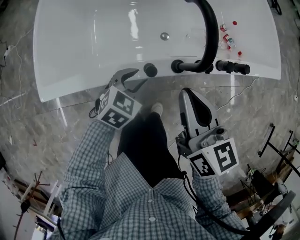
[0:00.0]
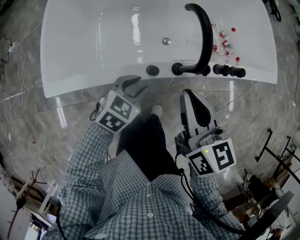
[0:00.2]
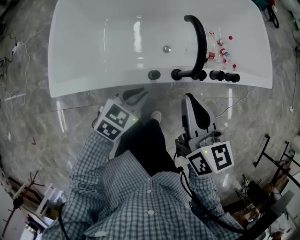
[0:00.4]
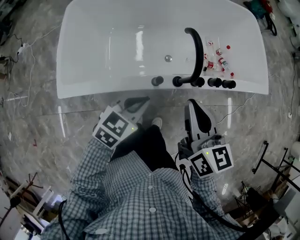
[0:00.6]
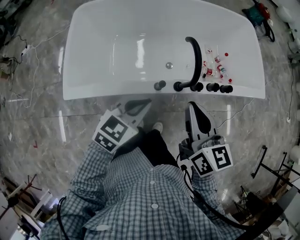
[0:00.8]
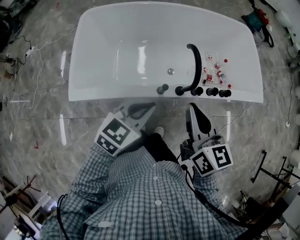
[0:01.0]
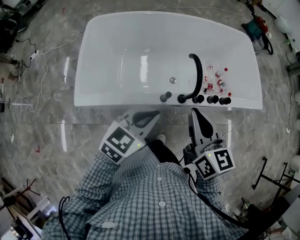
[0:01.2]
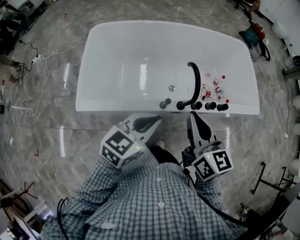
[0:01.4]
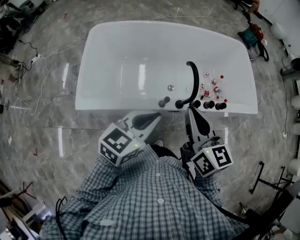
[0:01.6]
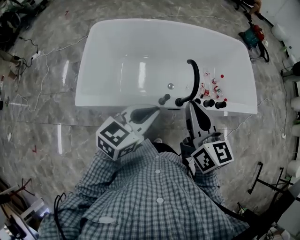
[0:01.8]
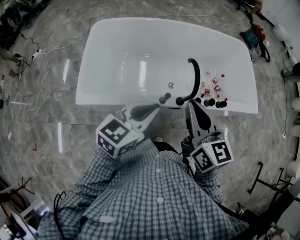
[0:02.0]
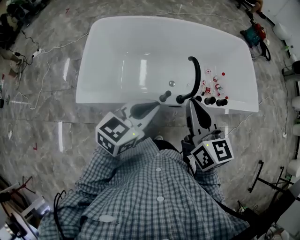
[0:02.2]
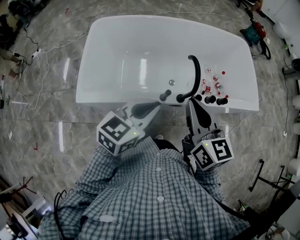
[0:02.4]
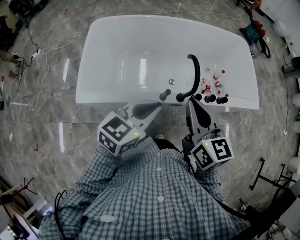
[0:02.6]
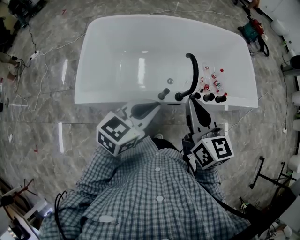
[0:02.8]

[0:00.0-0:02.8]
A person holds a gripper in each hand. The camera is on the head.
0:00.0 to 0:01.4: The right gripper travels upward by about 20 cm. The left gripper moves upward, approximately 35 cm, rotates about 30 degrees, and closes.
0:01.4 to 0:02.8: The grippers stay close to where they were, moving slightly.

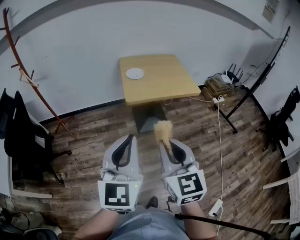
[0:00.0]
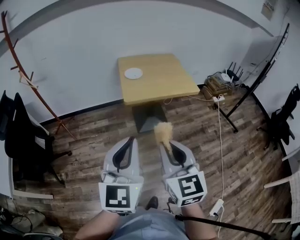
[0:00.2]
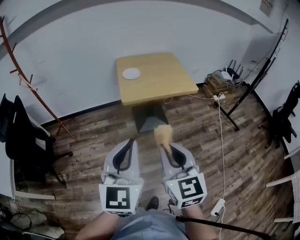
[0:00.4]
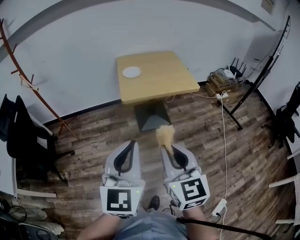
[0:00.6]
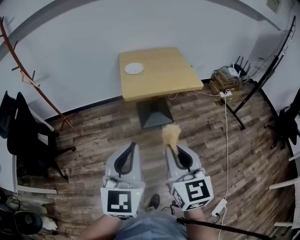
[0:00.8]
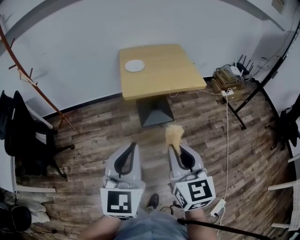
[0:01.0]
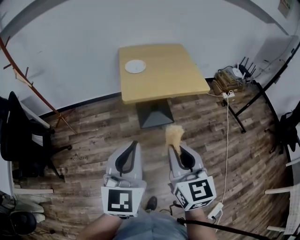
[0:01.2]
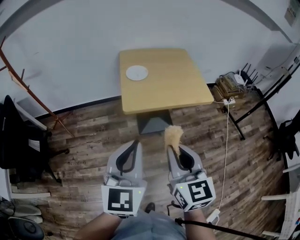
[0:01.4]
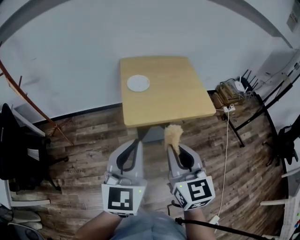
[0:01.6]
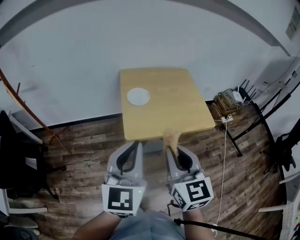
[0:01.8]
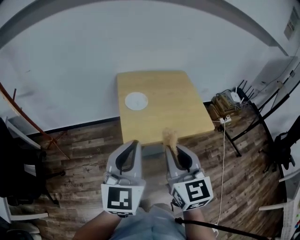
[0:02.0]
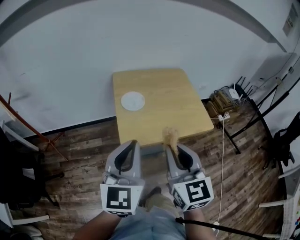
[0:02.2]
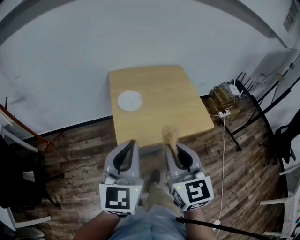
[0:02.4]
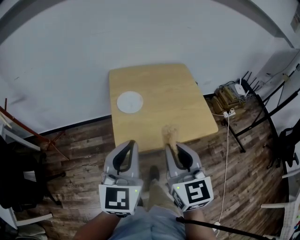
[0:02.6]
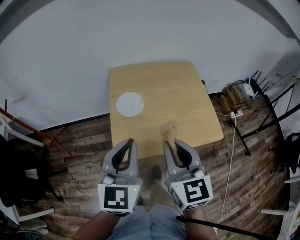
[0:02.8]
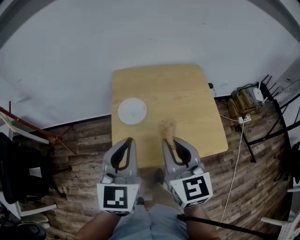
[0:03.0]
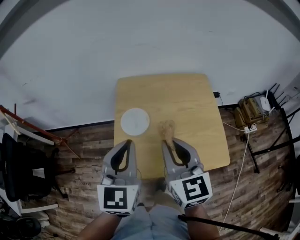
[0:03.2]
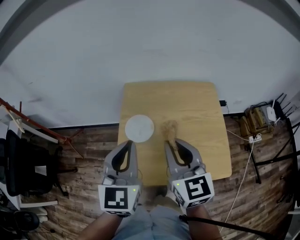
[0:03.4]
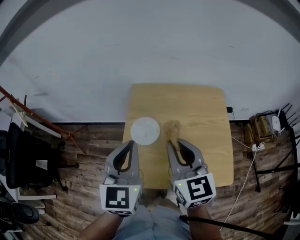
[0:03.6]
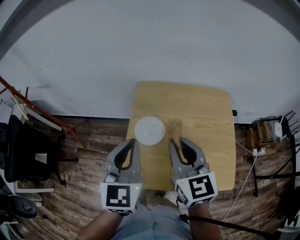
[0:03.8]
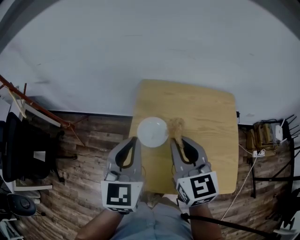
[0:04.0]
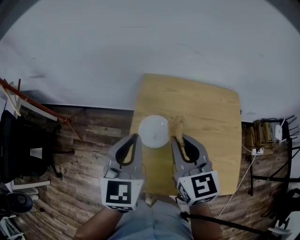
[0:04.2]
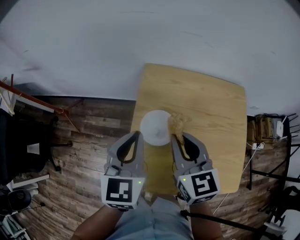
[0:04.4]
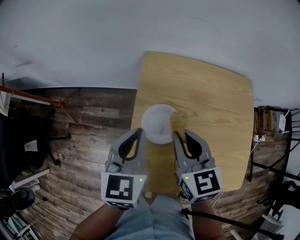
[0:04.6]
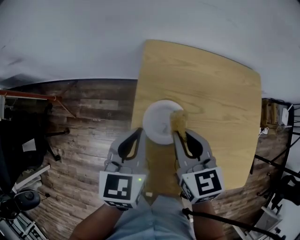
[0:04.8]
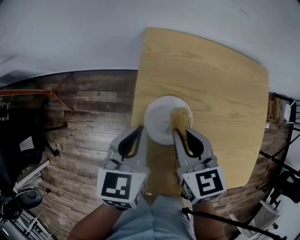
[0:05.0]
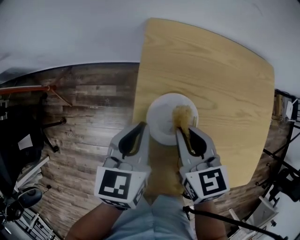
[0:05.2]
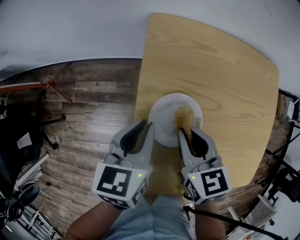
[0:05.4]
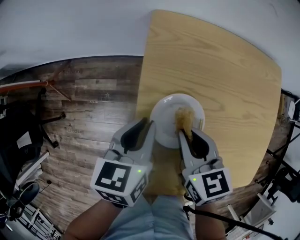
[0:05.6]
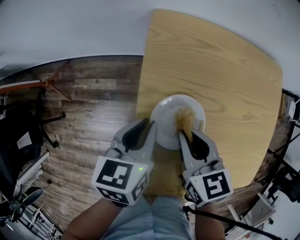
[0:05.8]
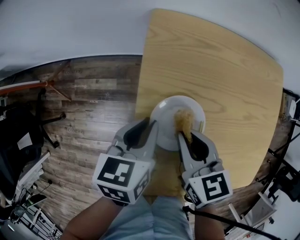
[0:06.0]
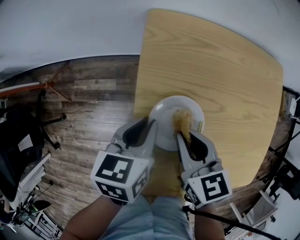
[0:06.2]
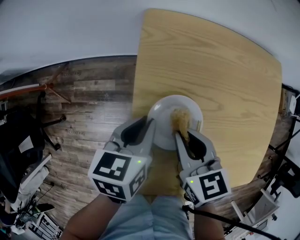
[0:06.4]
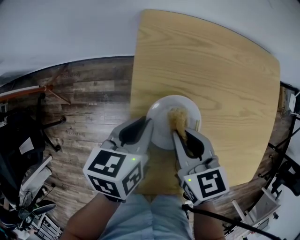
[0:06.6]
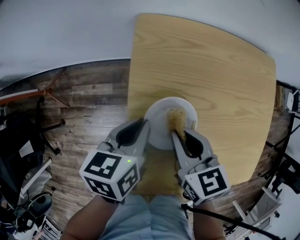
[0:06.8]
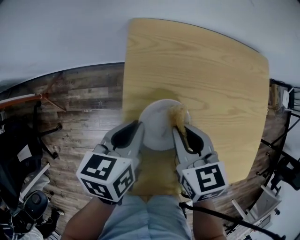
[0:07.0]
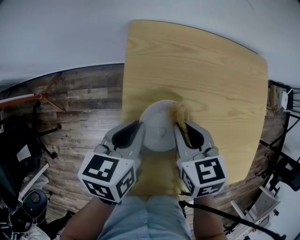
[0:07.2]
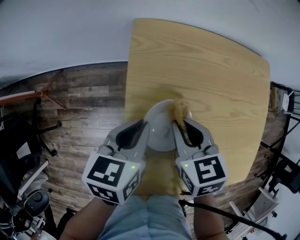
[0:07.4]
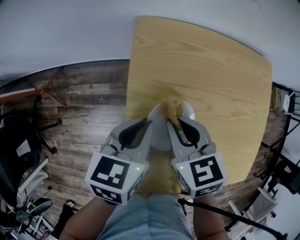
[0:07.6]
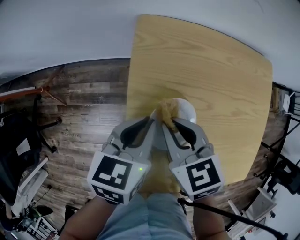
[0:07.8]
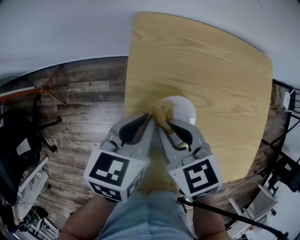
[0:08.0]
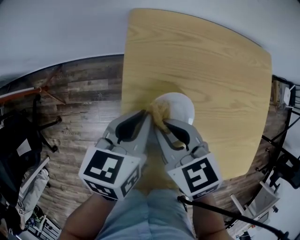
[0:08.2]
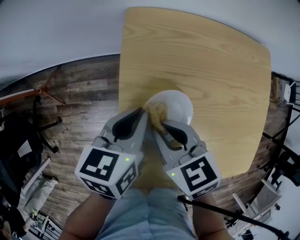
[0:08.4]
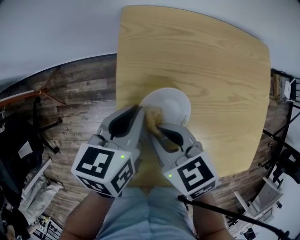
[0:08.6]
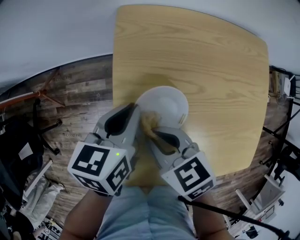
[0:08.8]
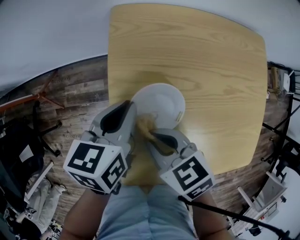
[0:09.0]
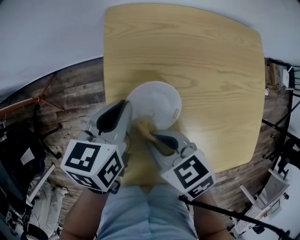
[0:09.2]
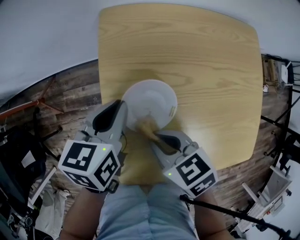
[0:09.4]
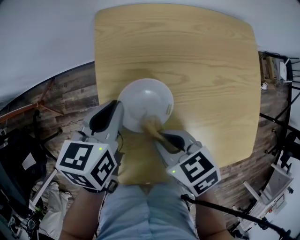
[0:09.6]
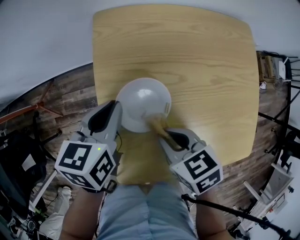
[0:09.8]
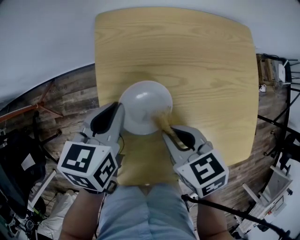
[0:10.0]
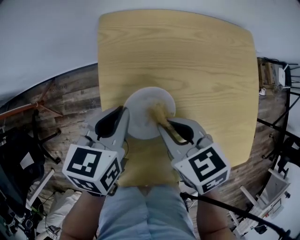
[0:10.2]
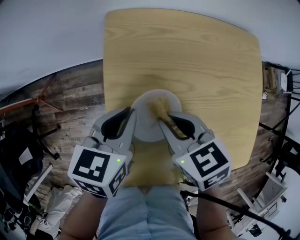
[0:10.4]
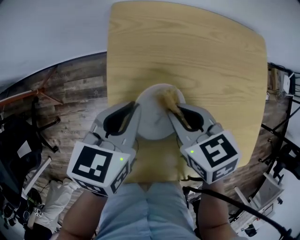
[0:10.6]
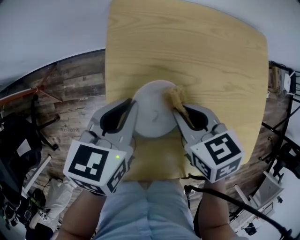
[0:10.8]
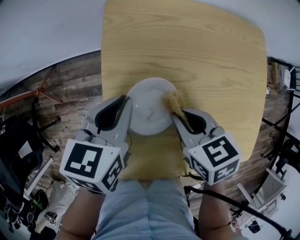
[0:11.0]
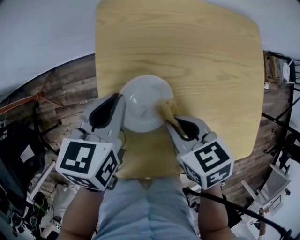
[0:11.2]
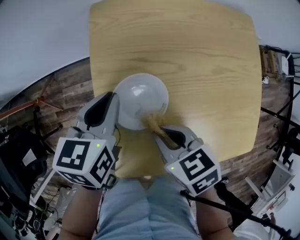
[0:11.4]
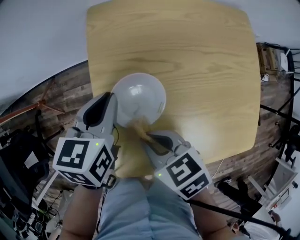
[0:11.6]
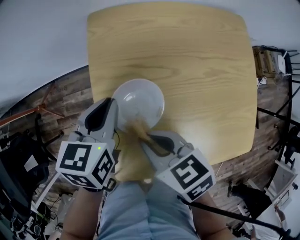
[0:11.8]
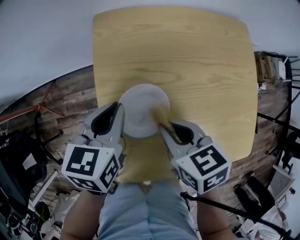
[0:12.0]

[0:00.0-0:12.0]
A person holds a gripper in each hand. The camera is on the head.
0:00.0 to 0:01.6: The grippers both shift forward by about 20 cm.
0:01.6 to 0:03.0: The two grippers go some 25 cm forward.
0:03.0 to 0:04.4: The grippers both shift forward by roughly 15 cm.
0:04.4 to 0:06.0: The two grippers go about 15 cm downward. The left gripper rotates roughly 40 degrees. The right gripper rotates some 20 degrees.
0:06.0 to 0:07.6: The grippers move only a little.
0:07.6 to 0:09.0: The right gripper goes some 10 cm backward.
0:09.0 to 0:10.4: The right gripper shifts some 5 cm to the right.

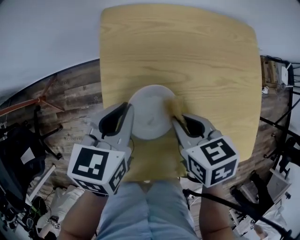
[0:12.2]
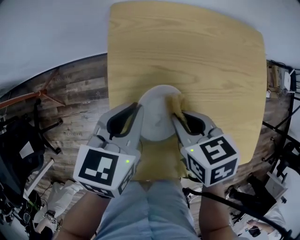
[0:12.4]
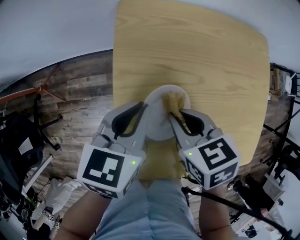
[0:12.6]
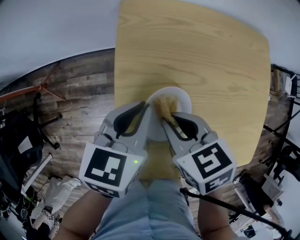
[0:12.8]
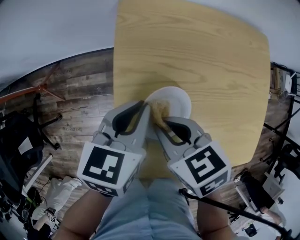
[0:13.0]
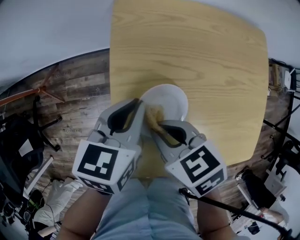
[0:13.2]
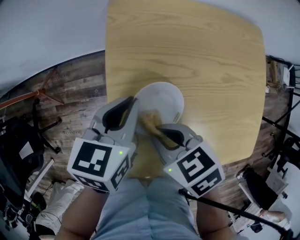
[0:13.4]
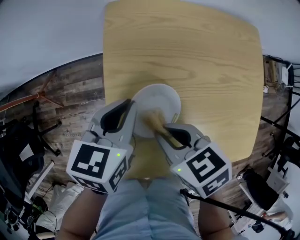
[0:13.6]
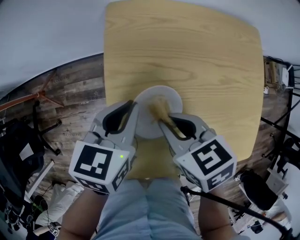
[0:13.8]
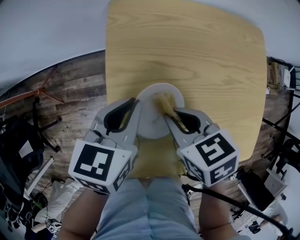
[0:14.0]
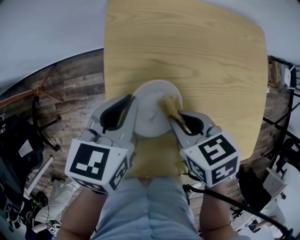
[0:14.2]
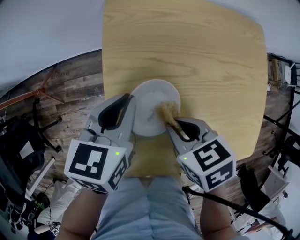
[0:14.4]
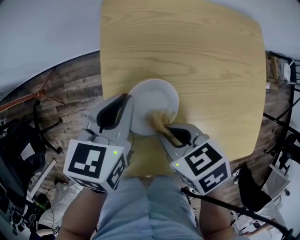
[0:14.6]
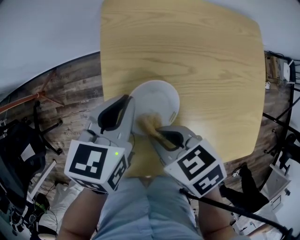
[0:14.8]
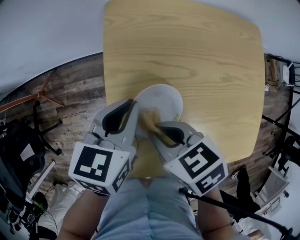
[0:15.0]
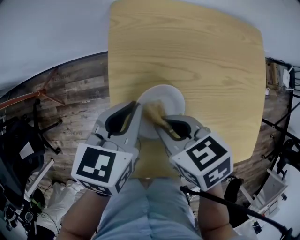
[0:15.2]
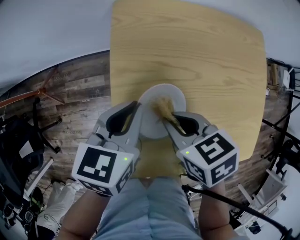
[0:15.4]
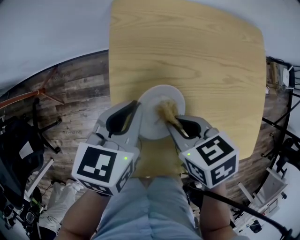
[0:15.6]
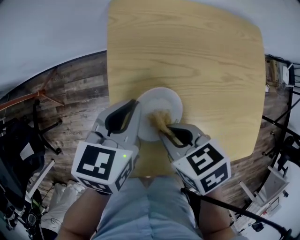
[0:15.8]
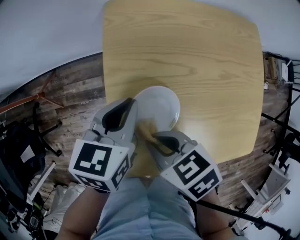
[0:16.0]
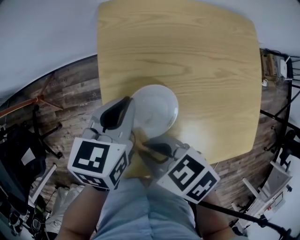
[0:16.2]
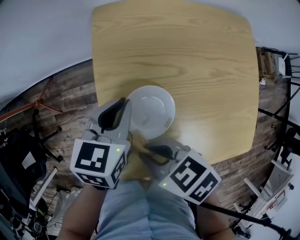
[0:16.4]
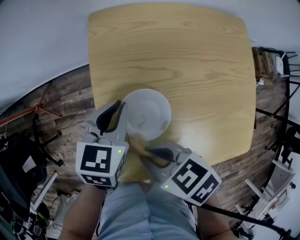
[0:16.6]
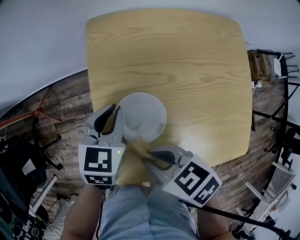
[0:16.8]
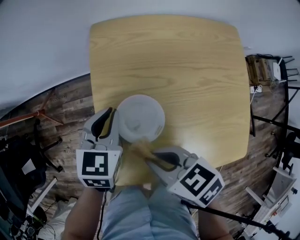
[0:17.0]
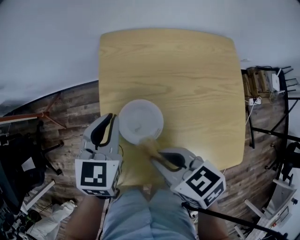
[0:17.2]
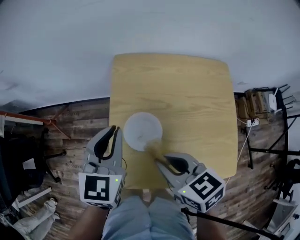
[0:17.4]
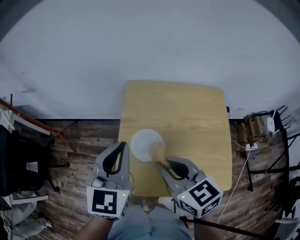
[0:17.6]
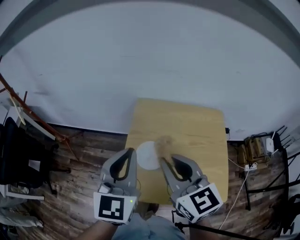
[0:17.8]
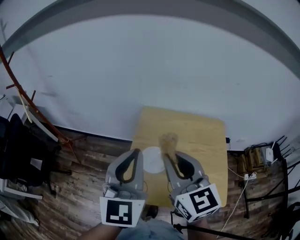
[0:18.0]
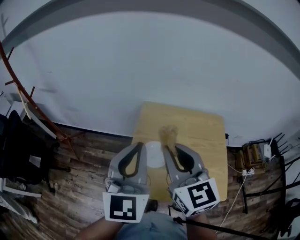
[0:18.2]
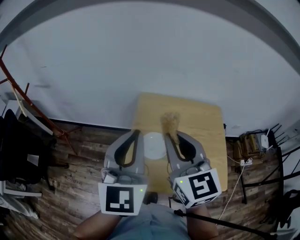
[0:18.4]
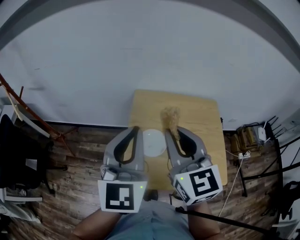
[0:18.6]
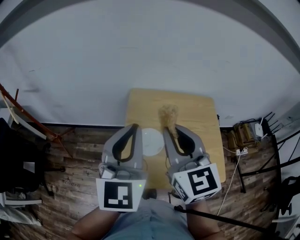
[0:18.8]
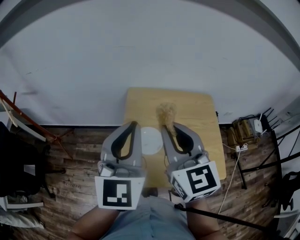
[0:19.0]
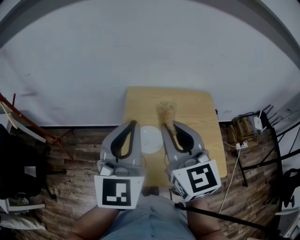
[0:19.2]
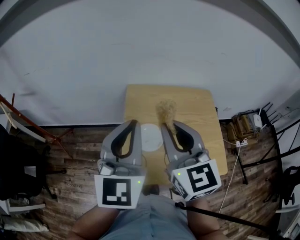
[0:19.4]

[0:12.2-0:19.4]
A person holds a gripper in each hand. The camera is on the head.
0:12.2 to 0:13.6: The right gripper heads to the left, covering approximately 5 cm.
0:13.6 to 0:15.0: The grippers stay close to where they were, moving slightly.
0:15.0 to 0:16.6: The right gripper shifts approximately 5 cm backward, and goes to the left and returns, roughly 5 cm each way.
0:16.6 to 0:18.0: Both grippers travel together upward, about 30 cm. The right gripper angles its fingers upward, by roughly 40 degrees. Meanwhile the left gripper points its fingers about 40 degrees further upward.
0:18.0 to 0:19.4: The grippers stay close to where they were, moving slightly.

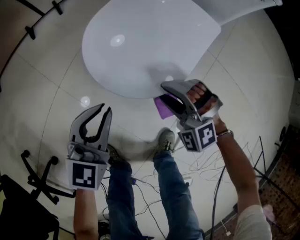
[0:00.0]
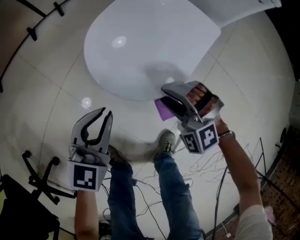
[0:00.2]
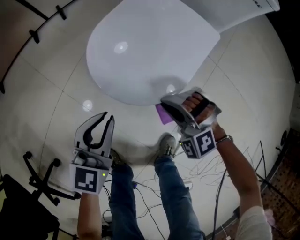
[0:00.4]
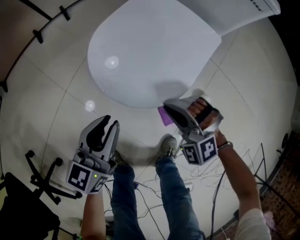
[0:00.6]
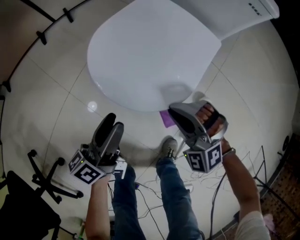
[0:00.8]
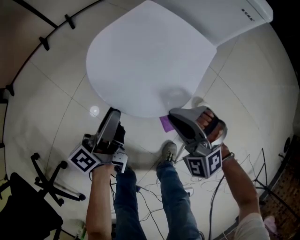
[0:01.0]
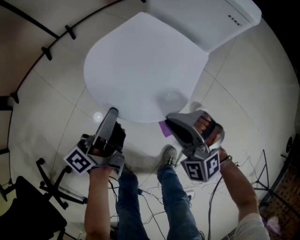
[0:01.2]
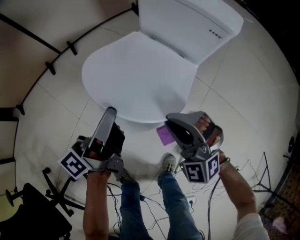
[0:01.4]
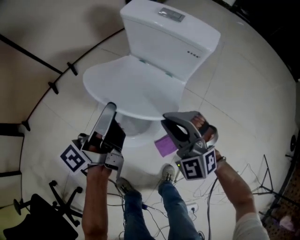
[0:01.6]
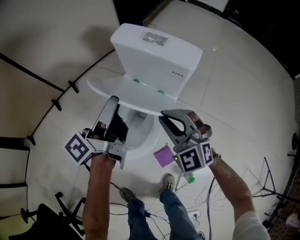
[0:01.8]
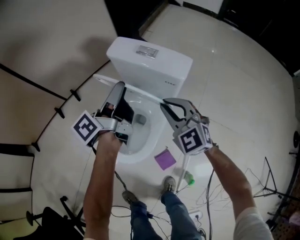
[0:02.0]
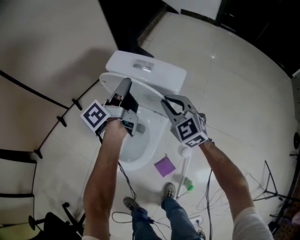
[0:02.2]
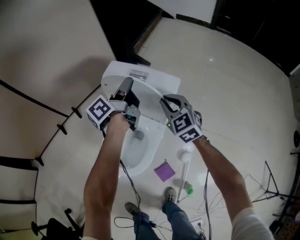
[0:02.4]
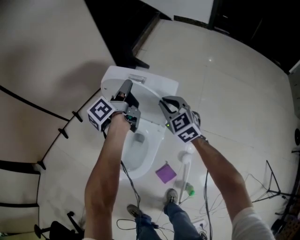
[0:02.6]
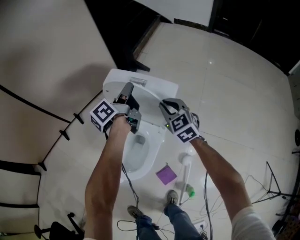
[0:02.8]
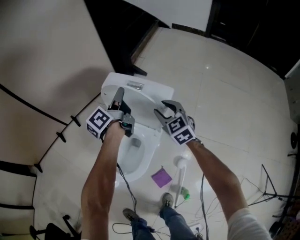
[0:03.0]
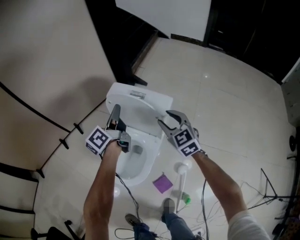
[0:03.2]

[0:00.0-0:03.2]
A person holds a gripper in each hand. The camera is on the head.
0:00.0 to 0:01.6: The right gripper moves upward, approximately 25 cm, turns by some 30 degrees, and closes. The left gripper heads upward and forward, covering approximately 30 cm, twists approximately 80 degrees counterclockwise, seen from behind, and opens, then closes again.
0:01.6 to 0:03.2: The right gripper travels forward, to the right and upward by approximately 25 cm, changes its angle by about 40 degrees, and opens its fingers. Meanwhile the left gripper moves forward, upward and to the right, approximately 25 cm.
